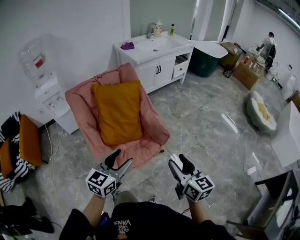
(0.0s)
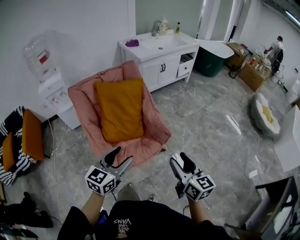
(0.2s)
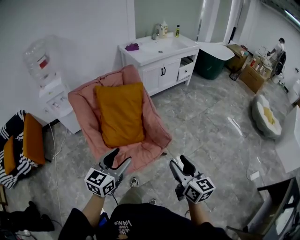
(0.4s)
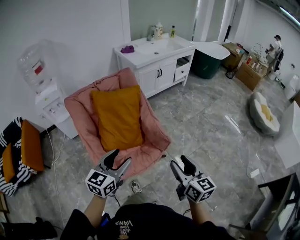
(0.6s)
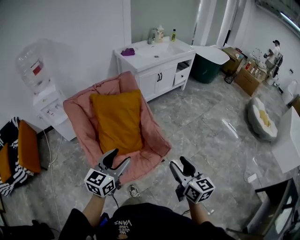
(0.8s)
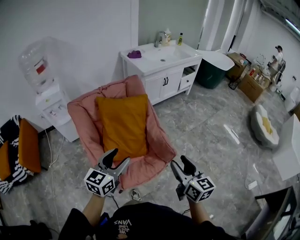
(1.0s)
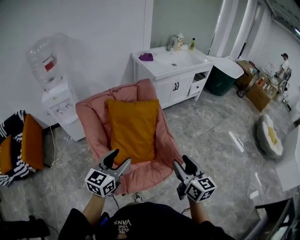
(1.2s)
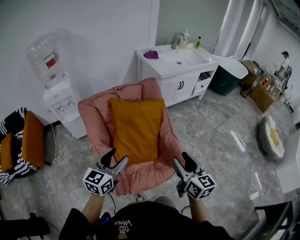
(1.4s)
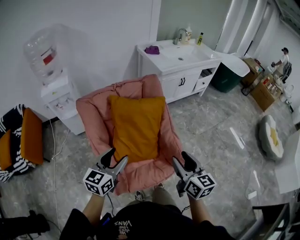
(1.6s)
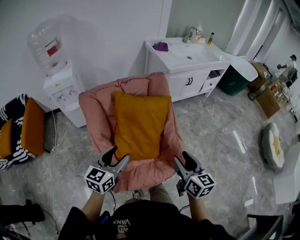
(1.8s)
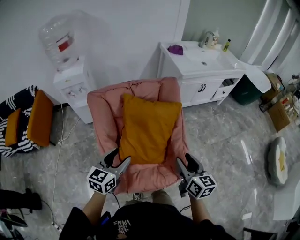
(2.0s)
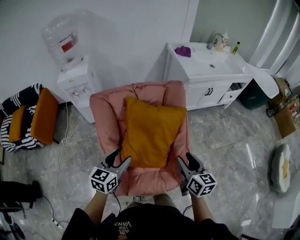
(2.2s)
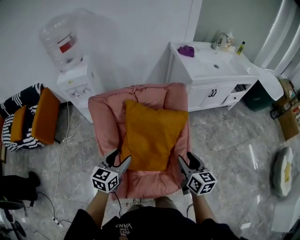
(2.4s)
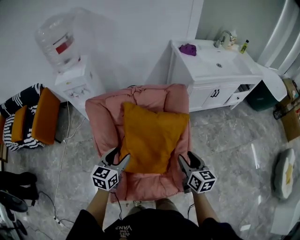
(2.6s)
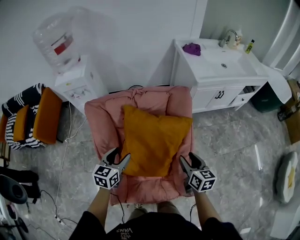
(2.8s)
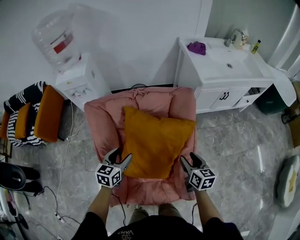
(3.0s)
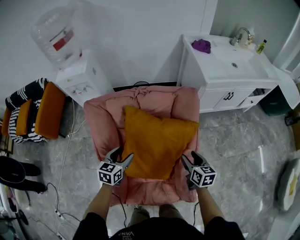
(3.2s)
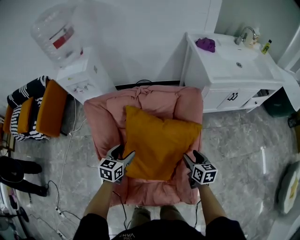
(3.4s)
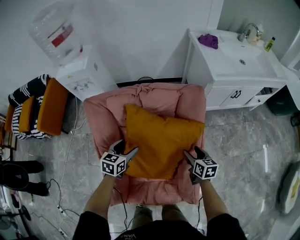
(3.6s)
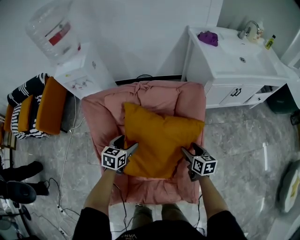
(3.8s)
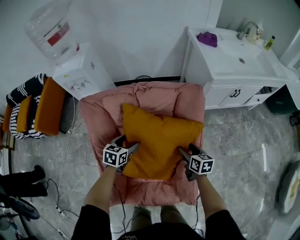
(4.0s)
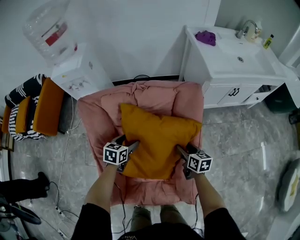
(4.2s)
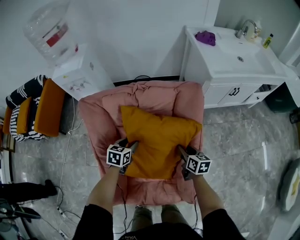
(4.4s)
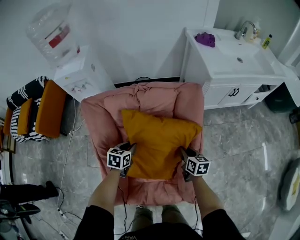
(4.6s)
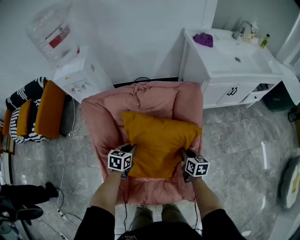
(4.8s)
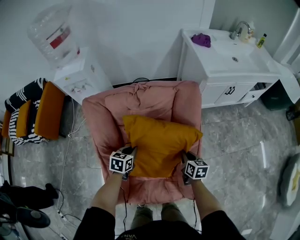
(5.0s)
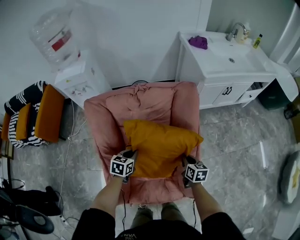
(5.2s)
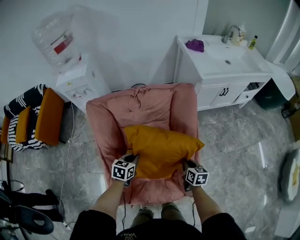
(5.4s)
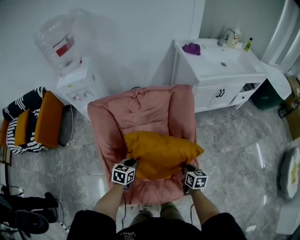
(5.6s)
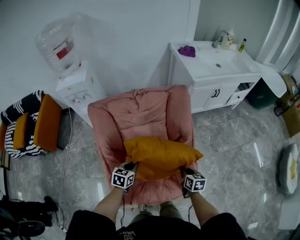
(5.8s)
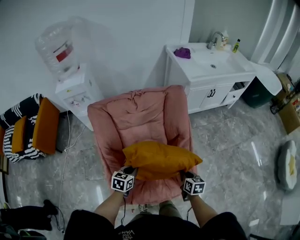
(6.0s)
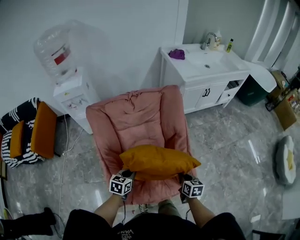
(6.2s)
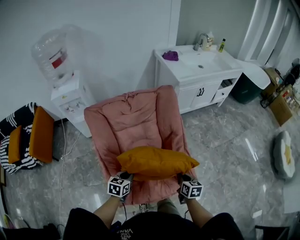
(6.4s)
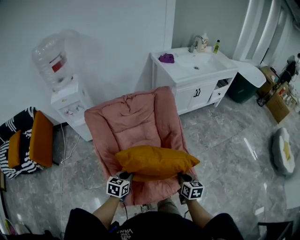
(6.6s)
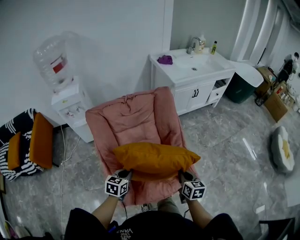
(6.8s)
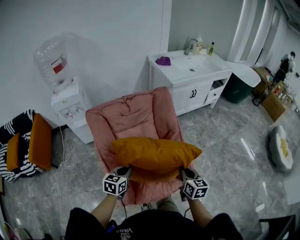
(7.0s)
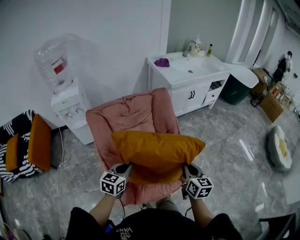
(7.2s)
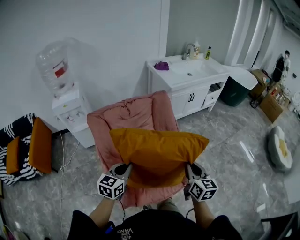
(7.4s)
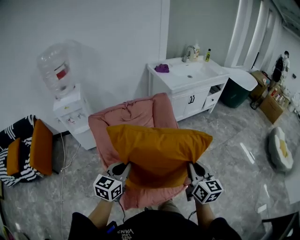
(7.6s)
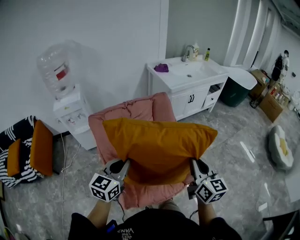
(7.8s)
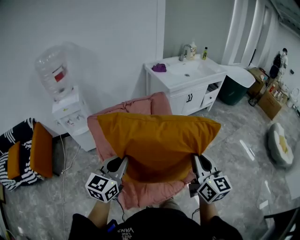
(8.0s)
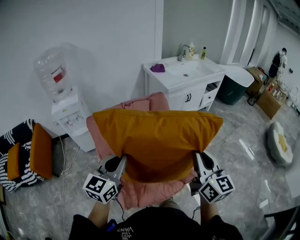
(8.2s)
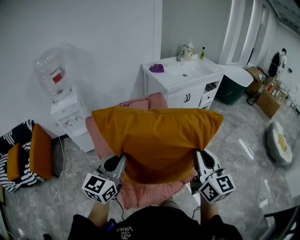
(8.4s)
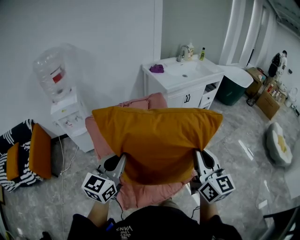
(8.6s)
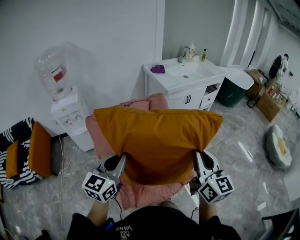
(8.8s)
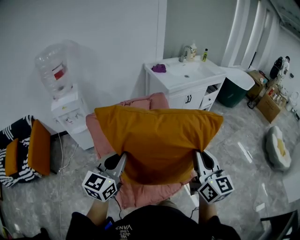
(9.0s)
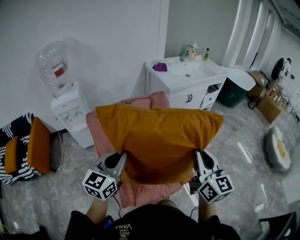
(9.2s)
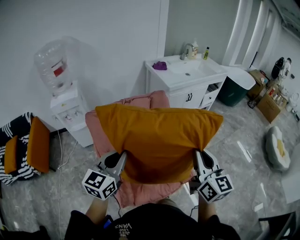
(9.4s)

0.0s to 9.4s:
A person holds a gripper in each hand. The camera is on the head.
0.0s to 1.6s: Both grippers move forward and to the left, roughly 25 cm.
1.6s to 3.2s: The grippers both shift forward and downward by approximately 35 cm. The left gripper turns by some 30 degrees; the right gripper turns by approximately 30 degrees.
3.2s to 4.8s: Both grippers travel together downward, about 10 cm. The right gripper closes its fingers. Meanwhile the left gripper closes up.
4.8s to 6.2s: The grippers both shift backward by approximately 20 cm.
6.2s to 7.8s: Both grippers move upward, roughly 30 cm. The right gripper angles its fingers upward, by roughly 40 degrees; the left gripper rotates about 30 degrees.
7.8s to 9.4s: Both grippers move upward, some 5 cm.
